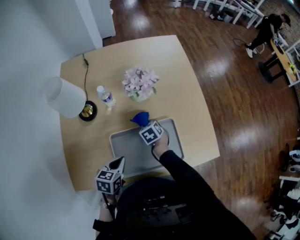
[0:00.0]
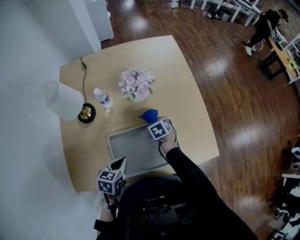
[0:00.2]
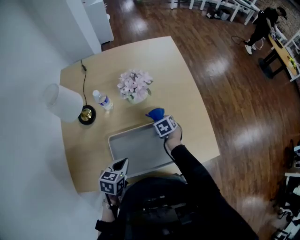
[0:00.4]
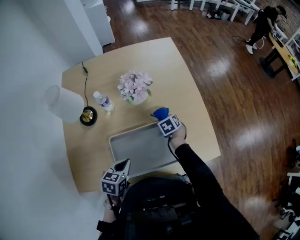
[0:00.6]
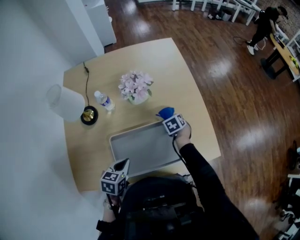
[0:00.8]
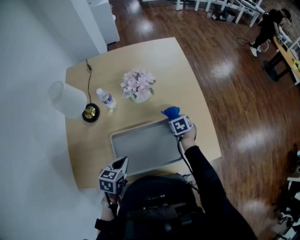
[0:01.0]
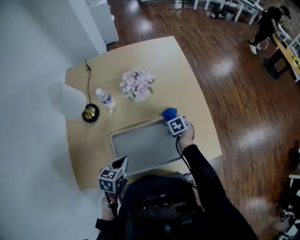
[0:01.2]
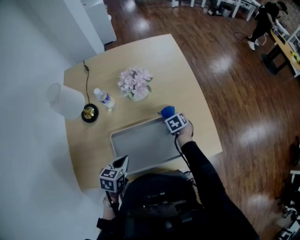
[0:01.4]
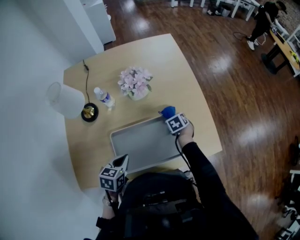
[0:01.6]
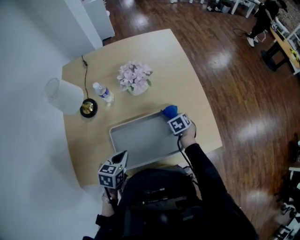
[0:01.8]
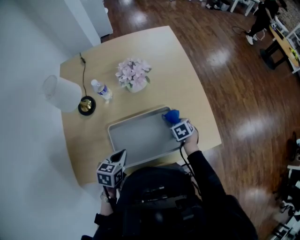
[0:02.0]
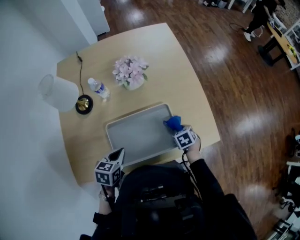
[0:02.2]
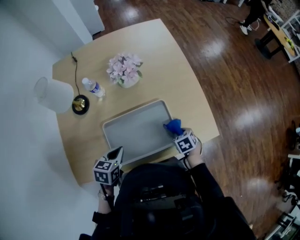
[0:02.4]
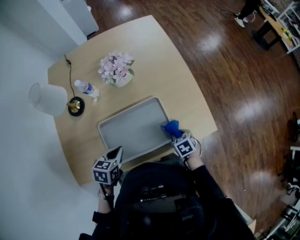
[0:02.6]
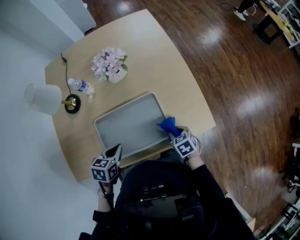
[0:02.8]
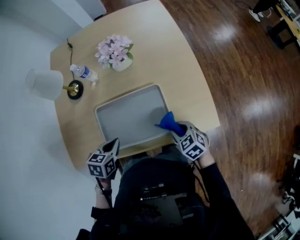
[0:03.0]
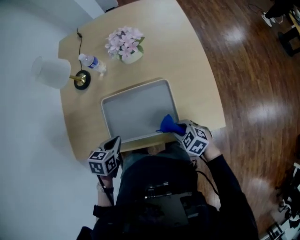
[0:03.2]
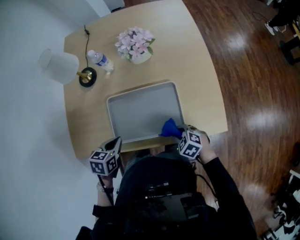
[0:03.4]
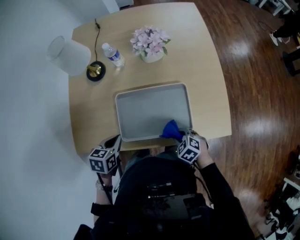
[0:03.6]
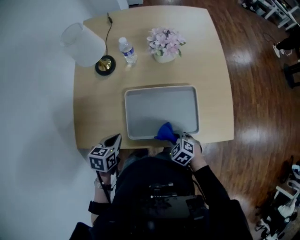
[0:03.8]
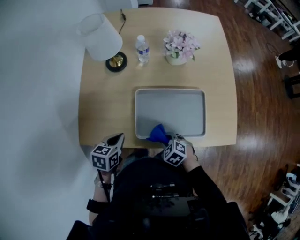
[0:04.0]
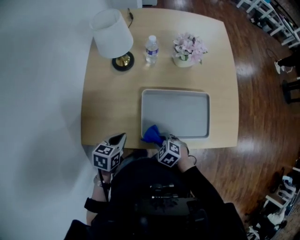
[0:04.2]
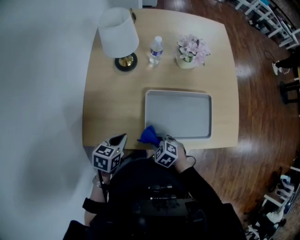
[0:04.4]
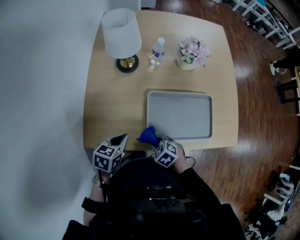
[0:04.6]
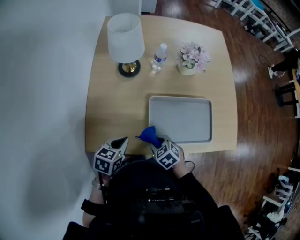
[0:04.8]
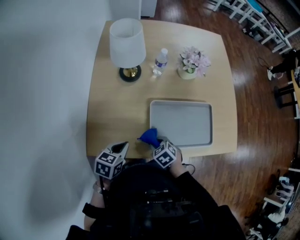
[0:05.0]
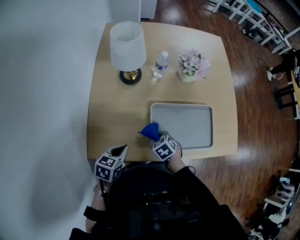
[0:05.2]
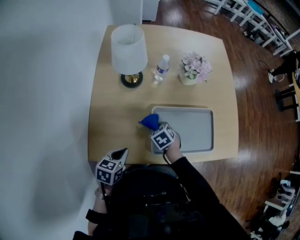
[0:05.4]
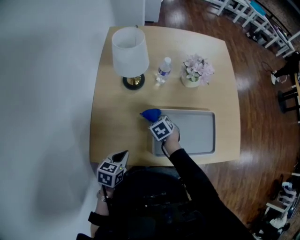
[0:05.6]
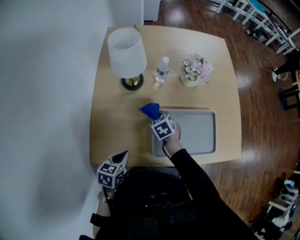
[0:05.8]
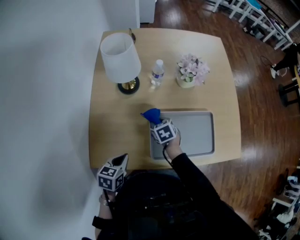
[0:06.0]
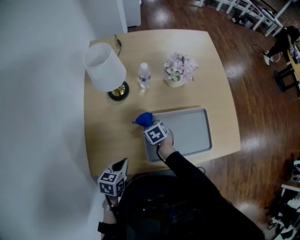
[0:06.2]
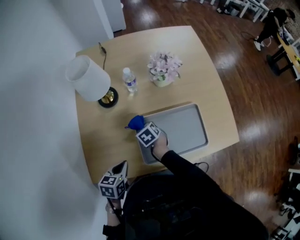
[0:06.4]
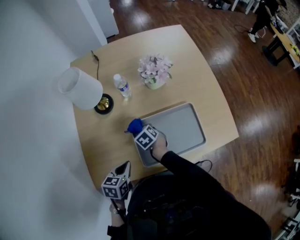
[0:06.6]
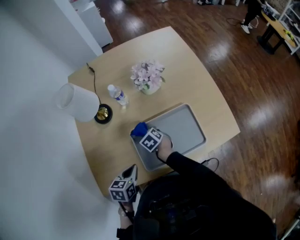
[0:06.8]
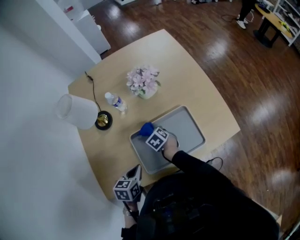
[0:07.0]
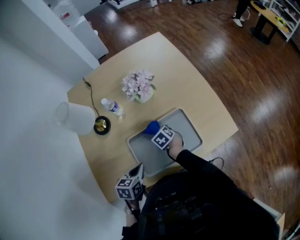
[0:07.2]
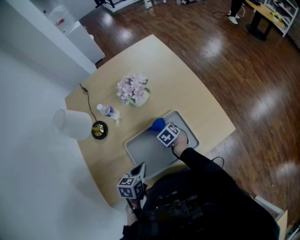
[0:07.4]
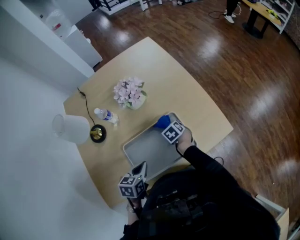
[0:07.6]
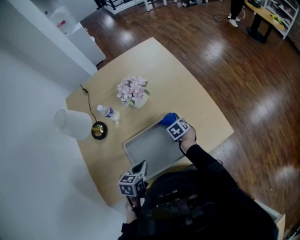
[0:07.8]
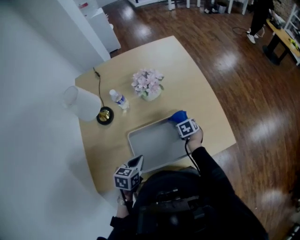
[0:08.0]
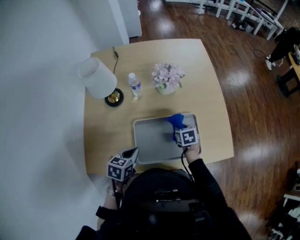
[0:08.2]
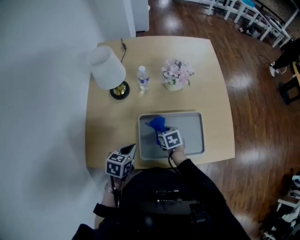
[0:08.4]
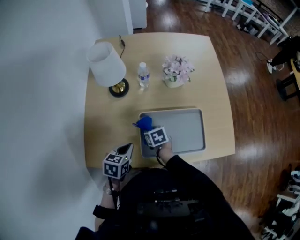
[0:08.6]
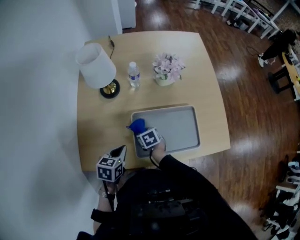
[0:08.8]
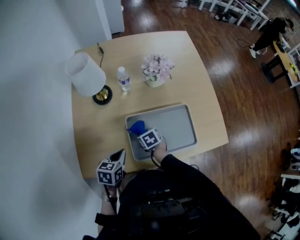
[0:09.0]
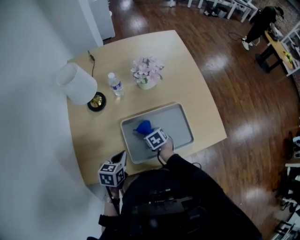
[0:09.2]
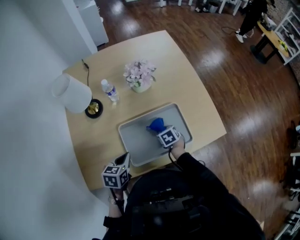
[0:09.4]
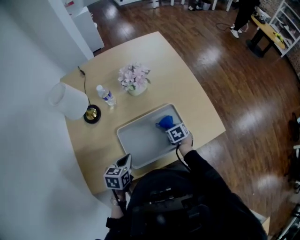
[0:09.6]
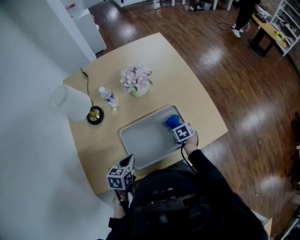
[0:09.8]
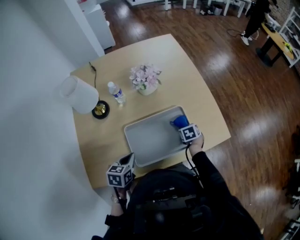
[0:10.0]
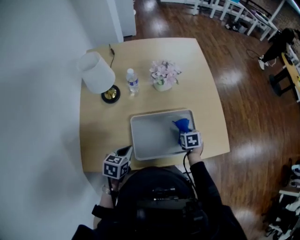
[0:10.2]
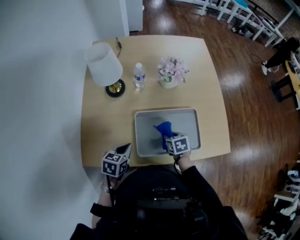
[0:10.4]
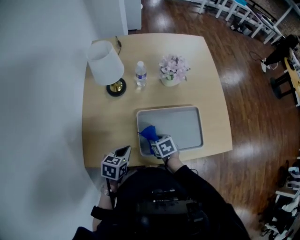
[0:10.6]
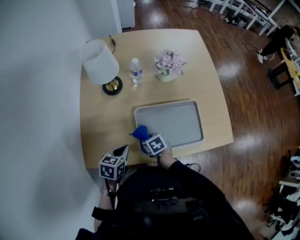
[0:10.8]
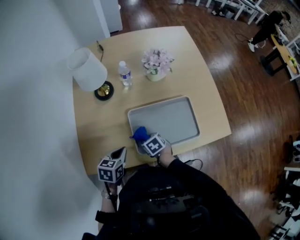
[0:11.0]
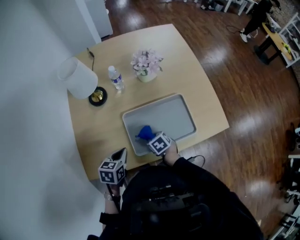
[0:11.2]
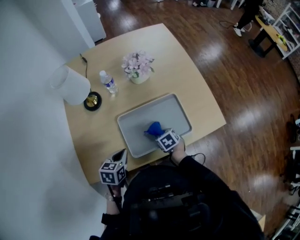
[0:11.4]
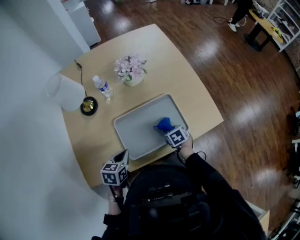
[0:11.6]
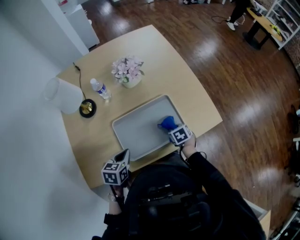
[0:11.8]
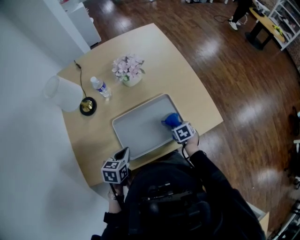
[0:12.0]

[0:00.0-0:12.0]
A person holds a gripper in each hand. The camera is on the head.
0:00.0 to 0:01.6: The right gripper travels to the right by approximately 15 cm.
0:01.6 to 0:03.0: The left gripper changes place by some 5 cm. The right gripper heads backward, covering approximately 20 cm, and rotates some 30 degrees.
0:03.0 to 0:04.4: The right gripper moves to the left, some 35 cm, and turns by about 30 degrees; the left gripper travels to the left by about 20 cm.
0:04.4 to 0:06.0: The right gripper travels forward by roughly 20 cm, and changes its angle by approximately 30 degrees.
0:06.0 to 0:07.6: Both grippers travel together to the right, approximately 25 cm.
0:07.6 to 0:09.0: The right gripper ends up about 25 cm from where it was. Meanwhile the left gripper shifts by about 15 cm.
0:10.4 to 0:12.0: The left gripper ends up roughly 5 cm from where it was. Meanwhile the right gripper moves roughly 20 cm.

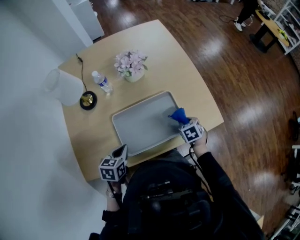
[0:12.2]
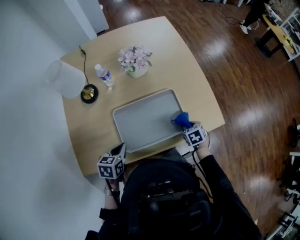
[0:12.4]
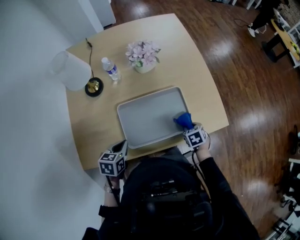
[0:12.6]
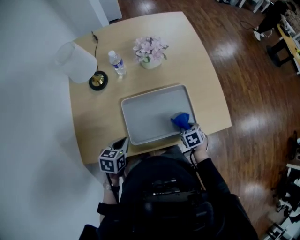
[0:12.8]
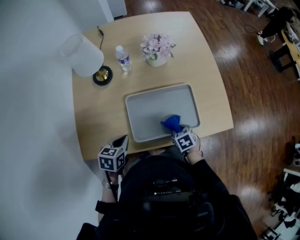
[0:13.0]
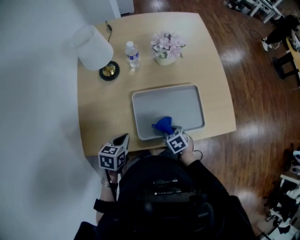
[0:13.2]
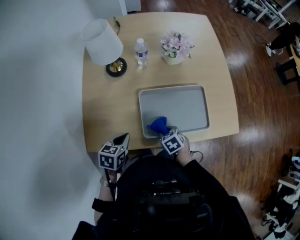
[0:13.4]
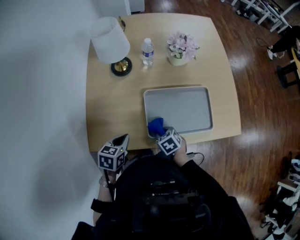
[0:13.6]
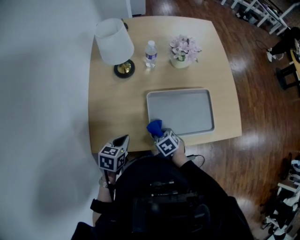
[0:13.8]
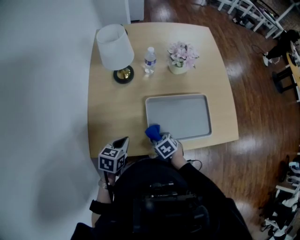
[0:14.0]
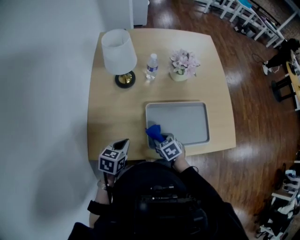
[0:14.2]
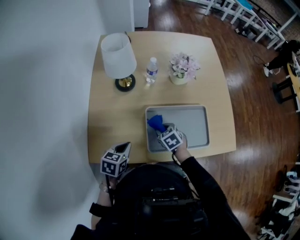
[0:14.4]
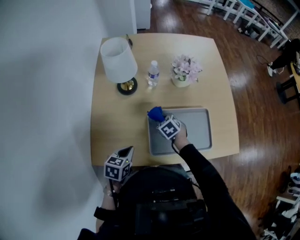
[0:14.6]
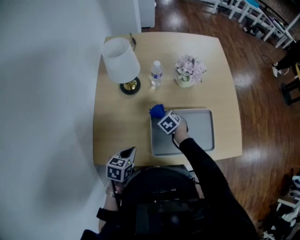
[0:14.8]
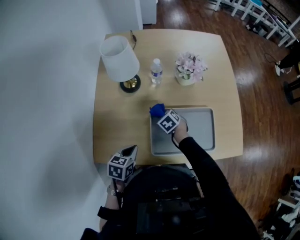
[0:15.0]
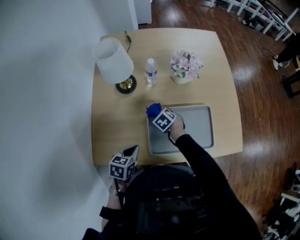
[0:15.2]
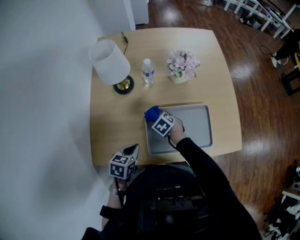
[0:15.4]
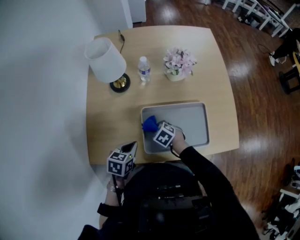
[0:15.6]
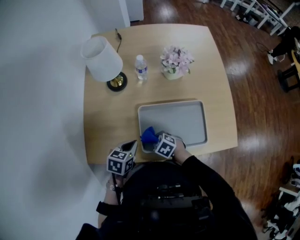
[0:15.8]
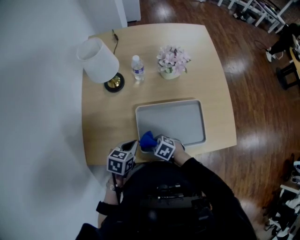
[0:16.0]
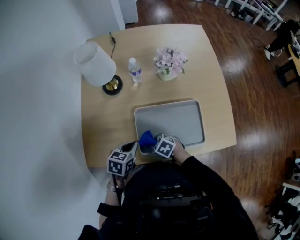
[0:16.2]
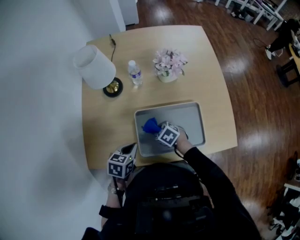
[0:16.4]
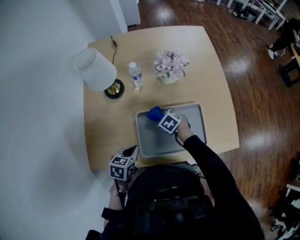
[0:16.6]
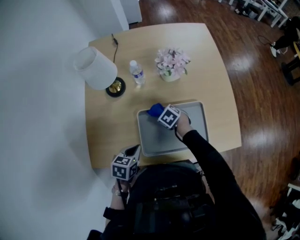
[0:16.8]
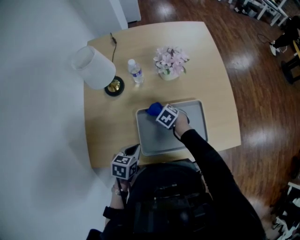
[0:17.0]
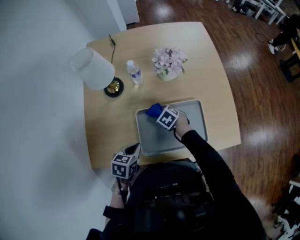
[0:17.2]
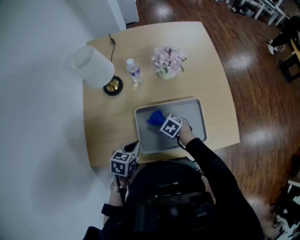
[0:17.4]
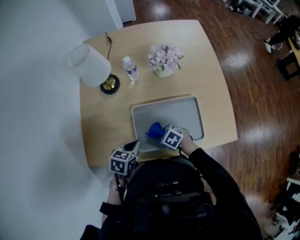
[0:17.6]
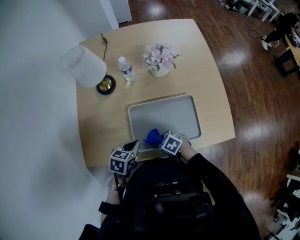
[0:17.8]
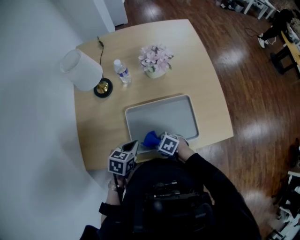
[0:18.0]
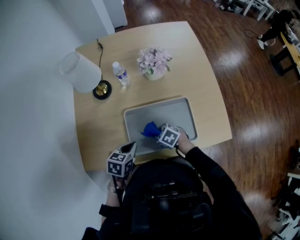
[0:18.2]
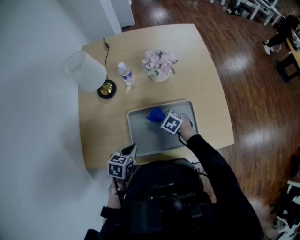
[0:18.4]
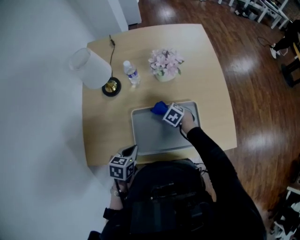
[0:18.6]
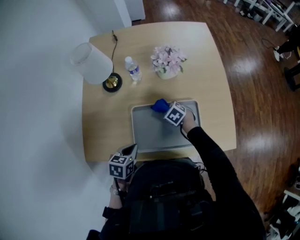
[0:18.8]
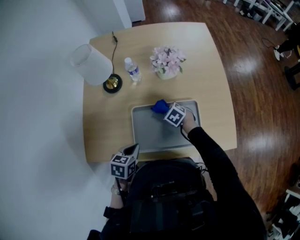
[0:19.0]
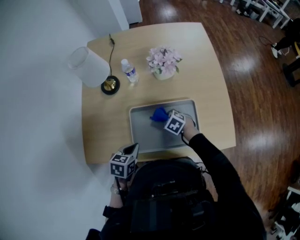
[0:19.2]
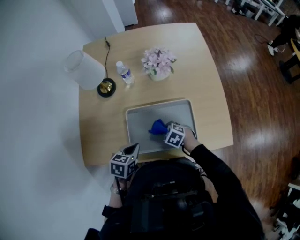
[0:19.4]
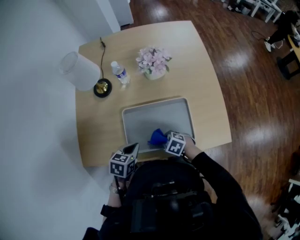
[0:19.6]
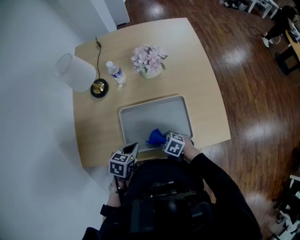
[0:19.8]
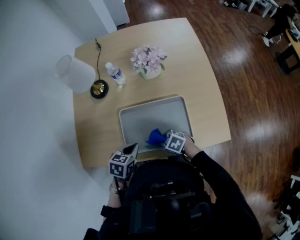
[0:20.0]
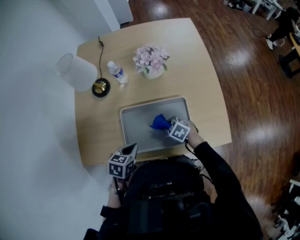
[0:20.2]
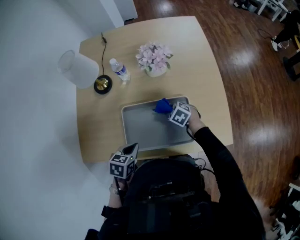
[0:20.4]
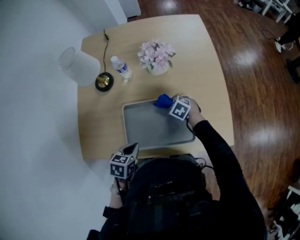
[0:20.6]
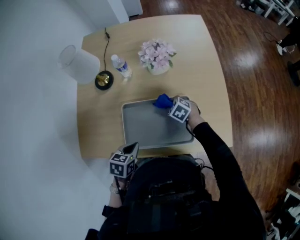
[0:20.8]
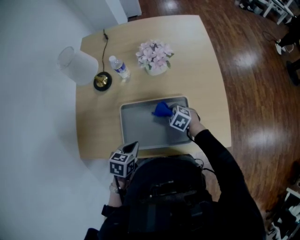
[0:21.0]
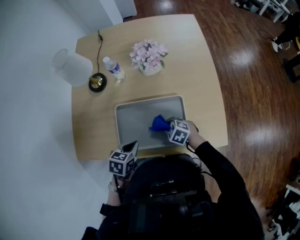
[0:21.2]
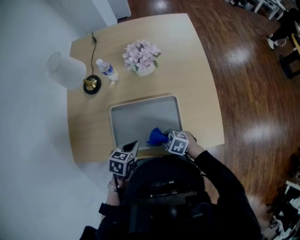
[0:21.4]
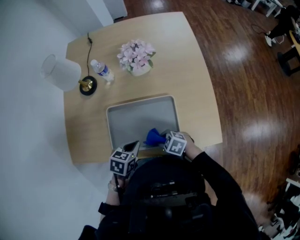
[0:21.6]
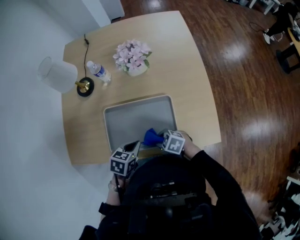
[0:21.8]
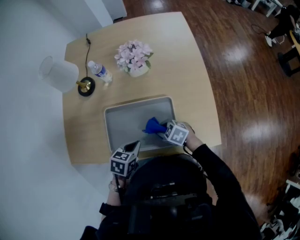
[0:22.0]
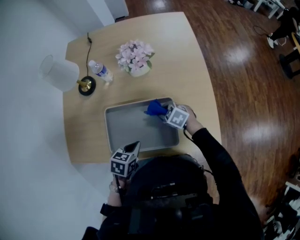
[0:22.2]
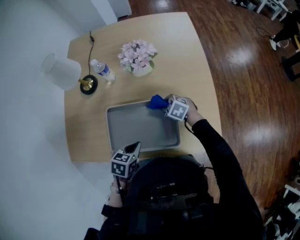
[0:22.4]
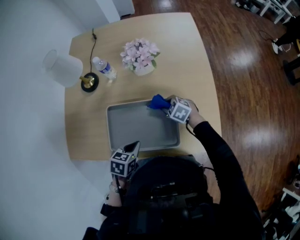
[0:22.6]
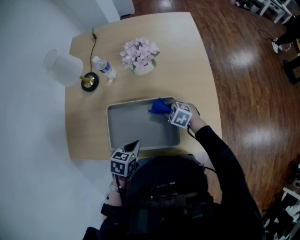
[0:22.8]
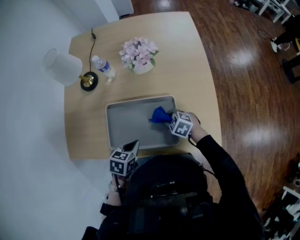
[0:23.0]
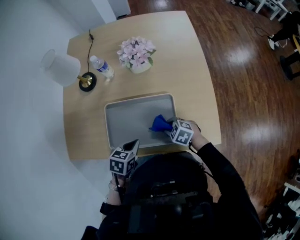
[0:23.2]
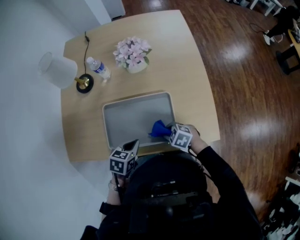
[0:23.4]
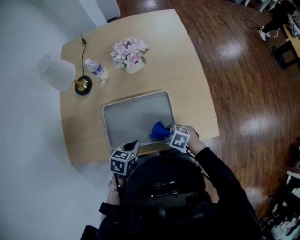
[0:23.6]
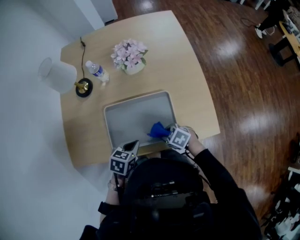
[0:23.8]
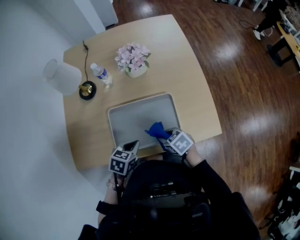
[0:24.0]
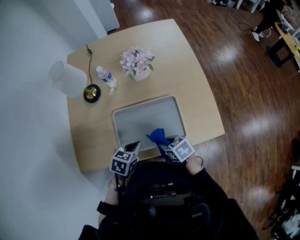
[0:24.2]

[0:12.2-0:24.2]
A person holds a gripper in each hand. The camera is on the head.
0:12.2 to 0:13.8: The left gripper changes place by about 15 cm; the right gripper moves about 35 cm, and turns by about 30 degrees.
0:13.8 to 0:15.2: The left gripper heads to the right, covering about 5 cm. Meanwhile the right gripper goes approximately 20 cm forward.
0:15.2 to 0:16.6: The left gripper shifts by about 5 cm.
0:18.2 to 0:19.8: The right gripper travels backward by roughly 5 cm.
0:21.2 to 0:22.6: The left gripper moves some 5 cm; the right gripper moves some 15 cm.
0:22.6 to 0:24.2: The right gripper shifts by approximately 20 cm, and rolls clockwise, seen from behind, by roughly 40 degrees. The left gripper shifts by roughly 5 cm.
